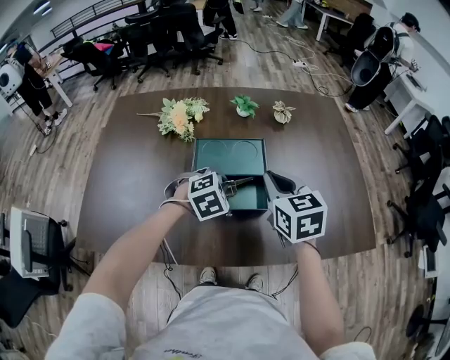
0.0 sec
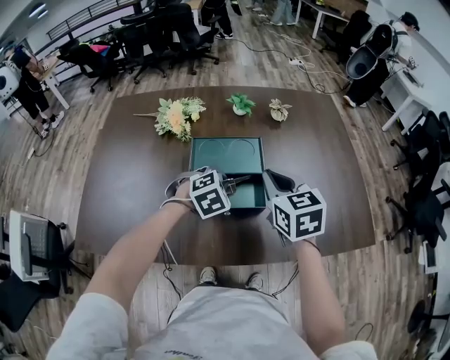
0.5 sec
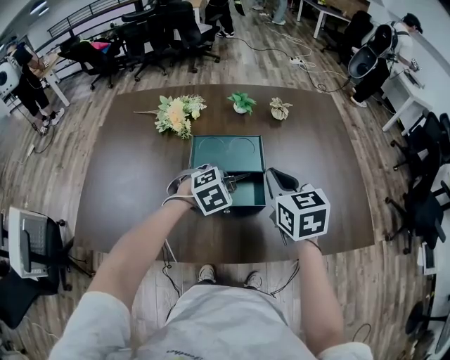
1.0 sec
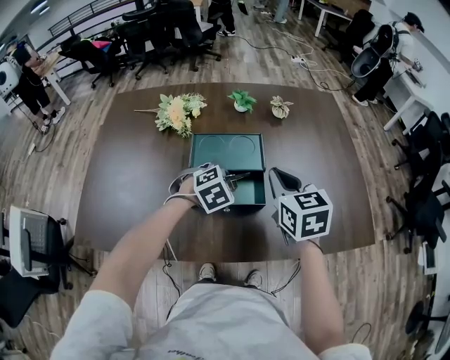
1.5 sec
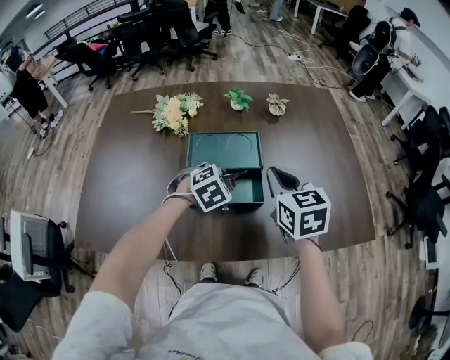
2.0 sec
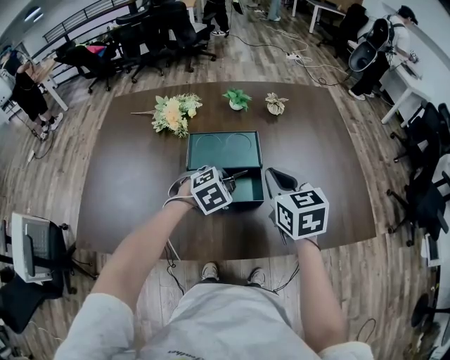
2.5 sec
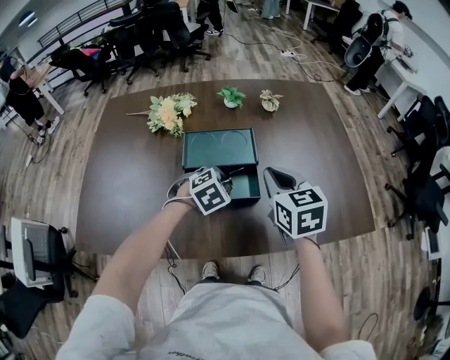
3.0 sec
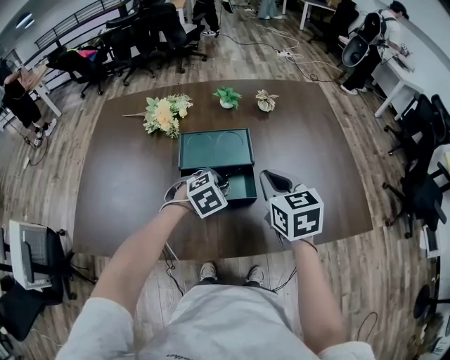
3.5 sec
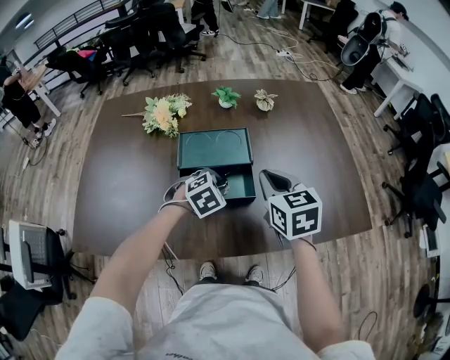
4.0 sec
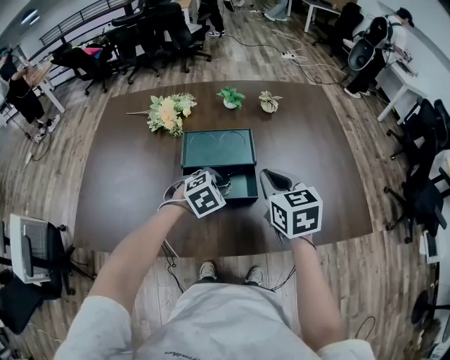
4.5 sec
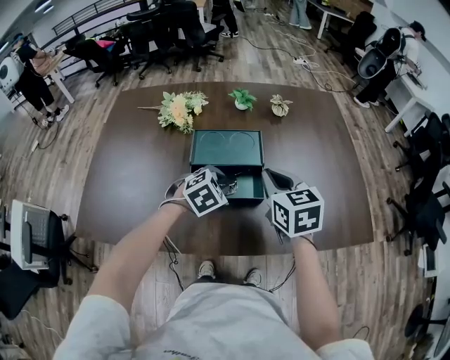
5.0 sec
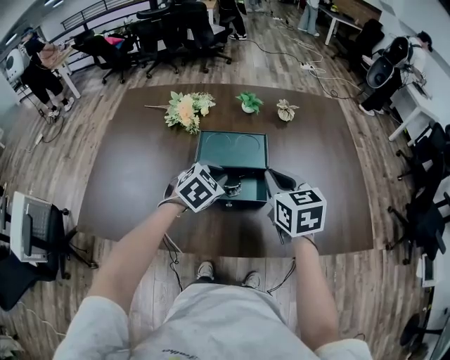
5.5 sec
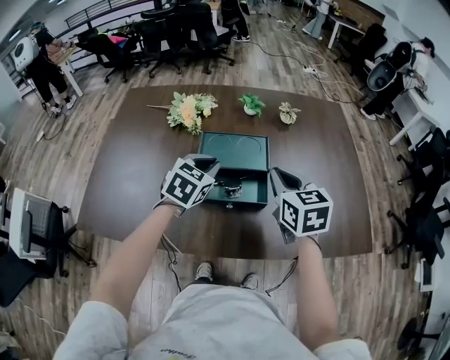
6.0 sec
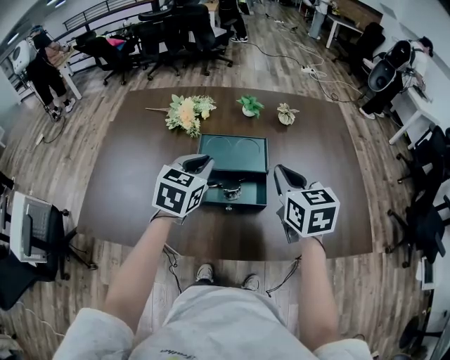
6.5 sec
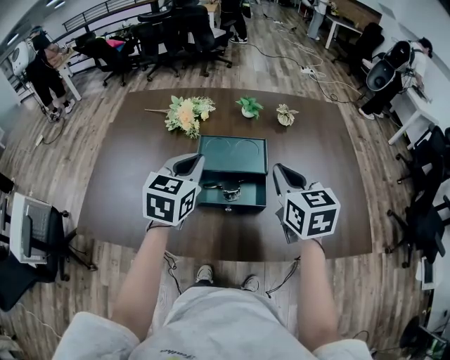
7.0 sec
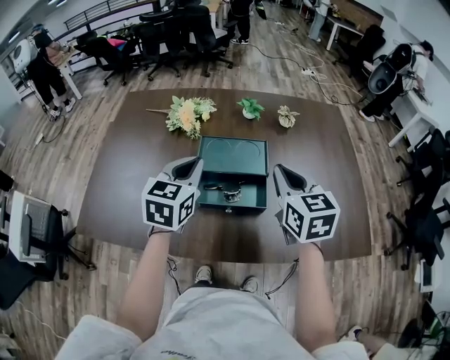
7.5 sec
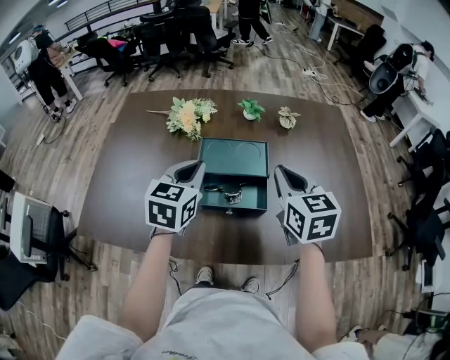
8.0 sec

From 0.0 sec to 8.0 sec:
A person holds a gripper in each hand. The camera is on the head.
From 0.0 sec to 2.0 sec: The grippers make only small movements.
From 2.0 sec to 4.0 sec: The left gripper opens up.
From 4.0 sec to 6.0 sec: The left gripper shifts roughly 15 cm upward and to the left, and turns by approximately 40 degrees.
From 6.0 sec to 8.0 sec: The left gripper travels upward by some 5 cm, and turns by approximately 20 degrees.

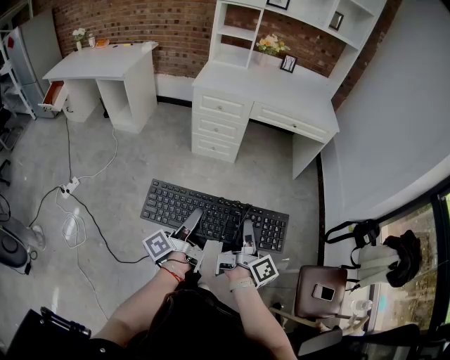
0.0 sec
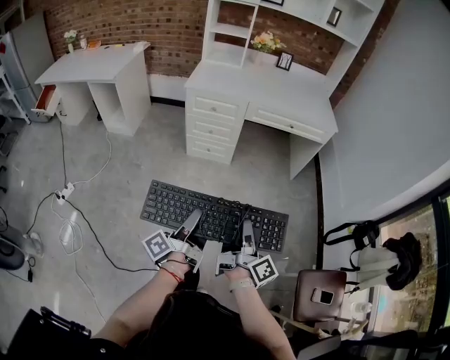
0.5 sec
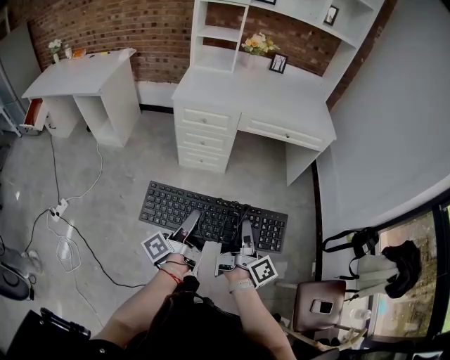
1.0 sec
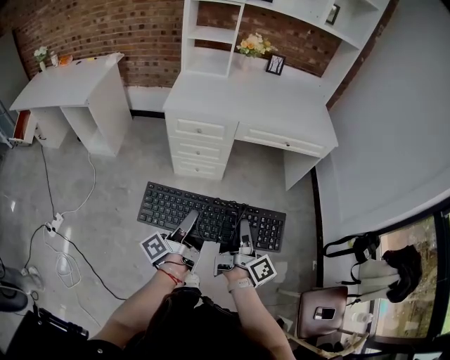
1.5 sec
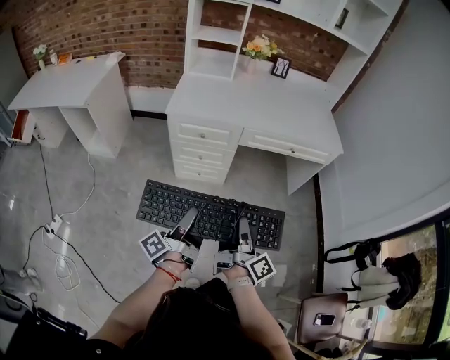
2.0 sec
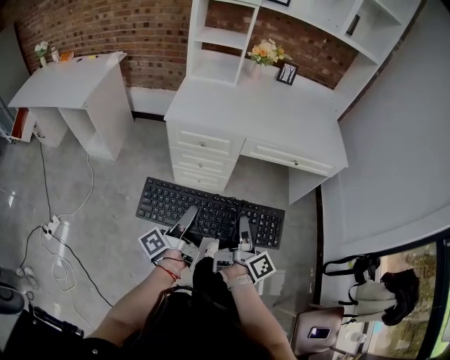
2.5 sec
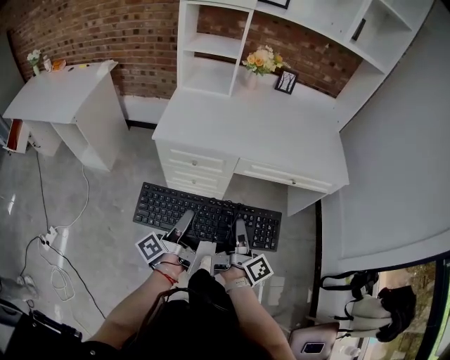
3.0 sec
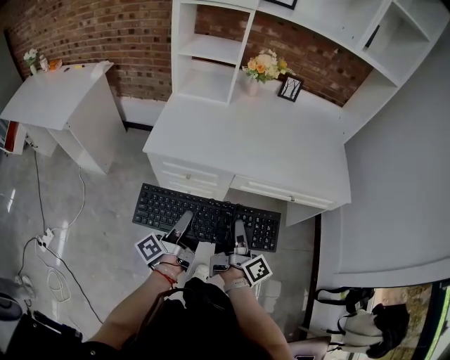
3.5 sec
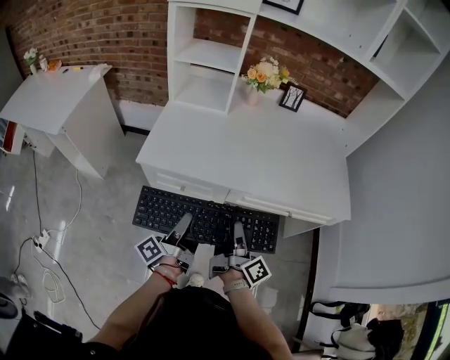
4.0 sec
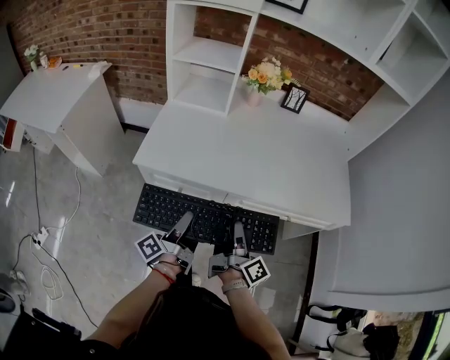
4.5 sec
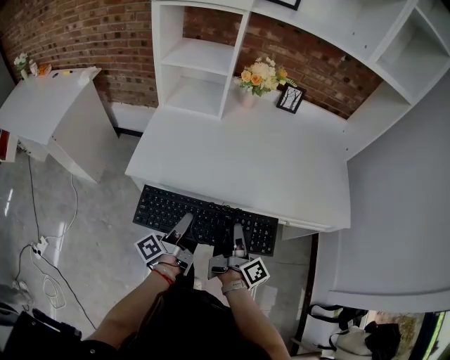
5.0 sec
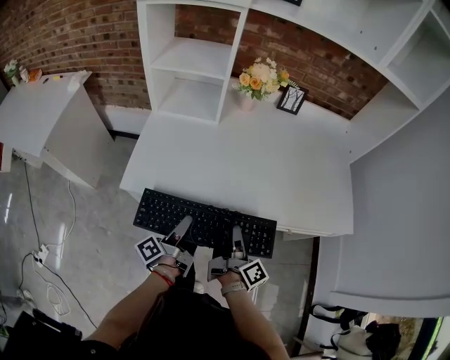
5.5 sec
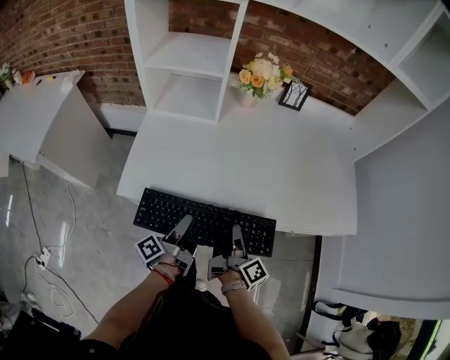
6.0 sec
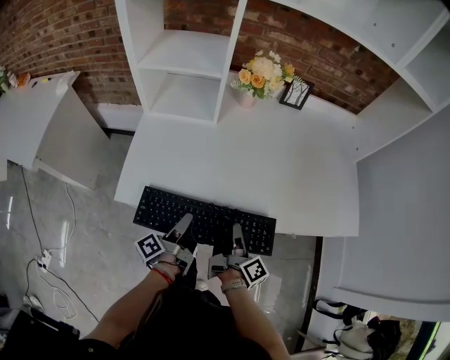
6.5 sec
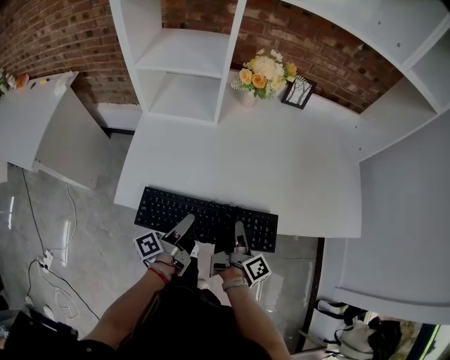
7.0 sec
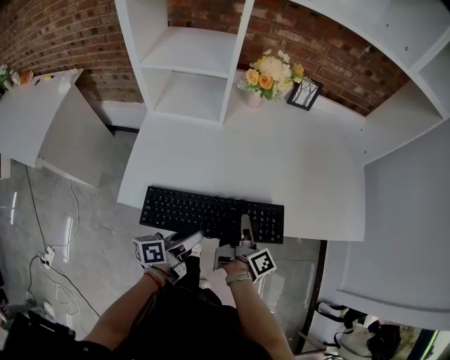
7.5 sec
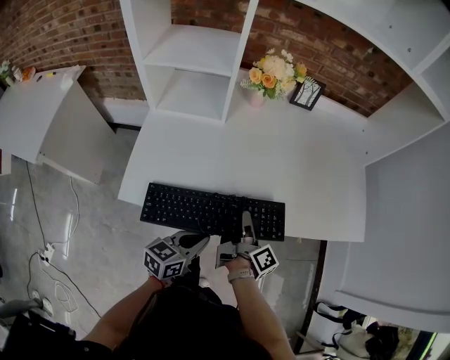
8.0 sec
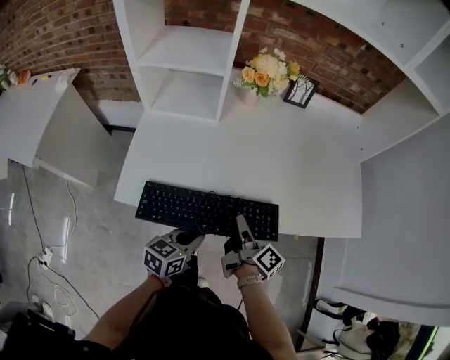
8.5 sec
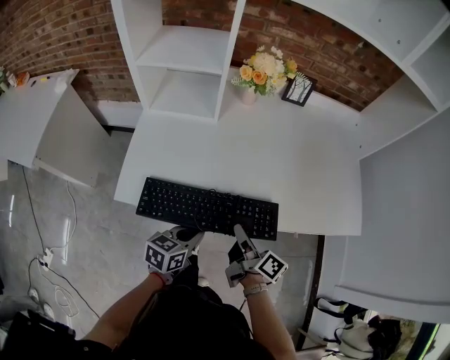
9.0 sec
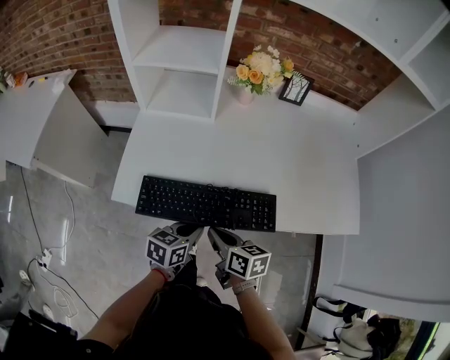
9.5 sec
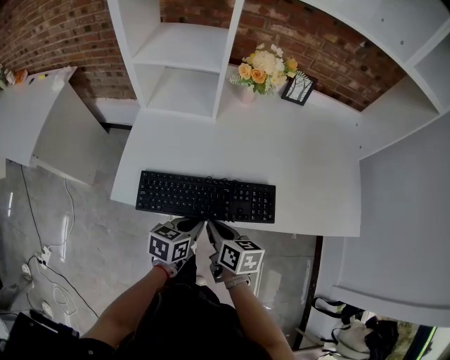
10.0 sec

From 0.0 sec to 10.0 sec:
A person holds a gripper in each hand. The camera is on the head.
From 0.0 sec to 2.0 sec: Both grippers travel together forward, roughly 30 cm.
From 2.0 sec to 4.0 sec: The two grippers go roughly 30 cm forward.
From 4.0 sec to 6.0 sec: The two grippers go roughly 15 cm forward and downward.
From 6.0 sec to 8.0 sec: The left gripper moves to the right, about 5 cm, and twists approximately 60 degrees clockwise, seen from behind. The right gripper is displaced forward by about 5 cm.
From 8.0 sec to 10.0 sec: The right gripper goes approximately 10 cm to the left and backward, rotates approximately 70 degrees, and opens, then closes once more, while the left gripper moves approximately 5 cm.

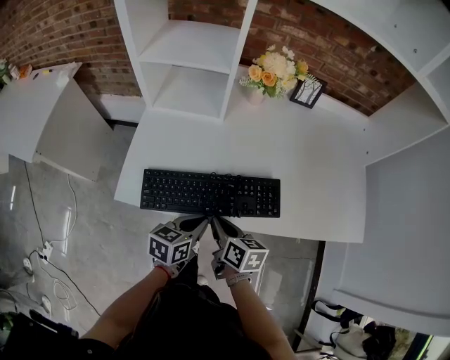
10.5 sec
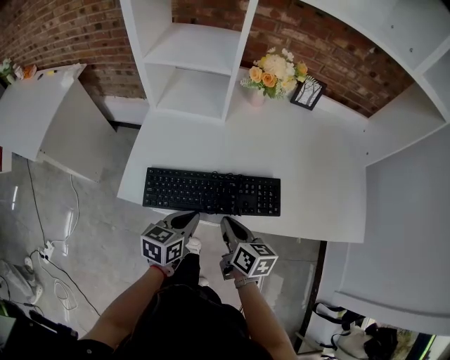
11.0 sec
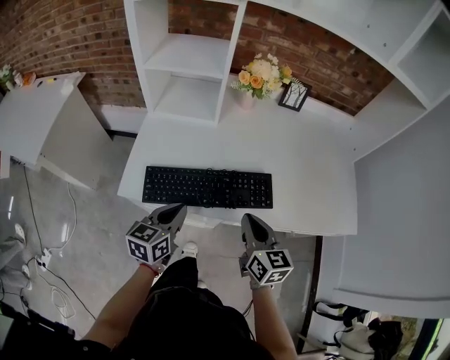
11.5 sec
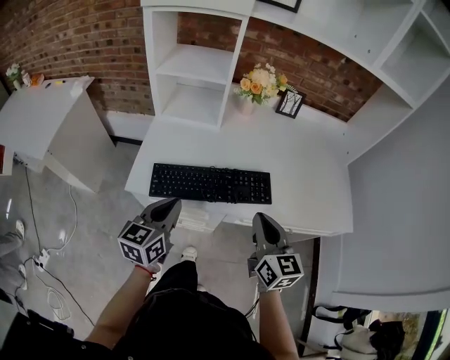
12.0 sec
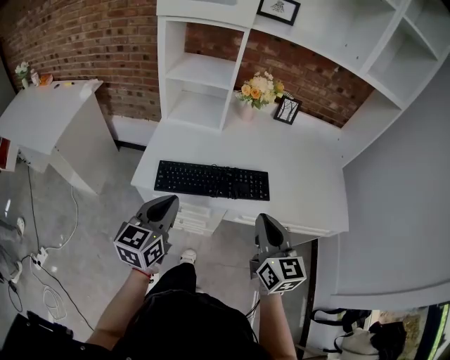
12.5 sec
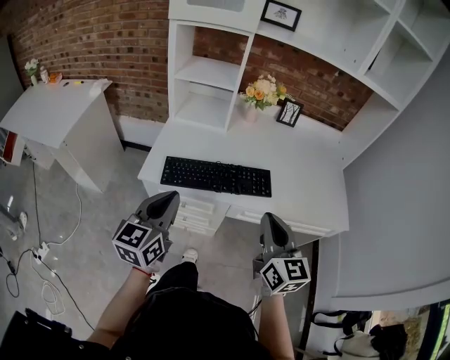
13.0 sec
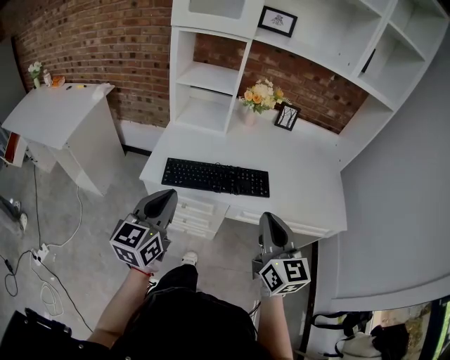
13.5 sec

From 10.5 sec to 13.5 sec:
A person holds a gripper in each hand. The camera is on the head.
From 10.5 sec to 12.0 sec: The left gripper moves upward and to the left, roughly 15 cm, and changes its angle by roughly 30 degrees, while the right gripper heads upward and to the right, covering roughly 20 cm, and rotates about 40 degrees.
From 12.0 sec to 13.5 sec: The grippers both shift backward and upward by approximately 15 cm.

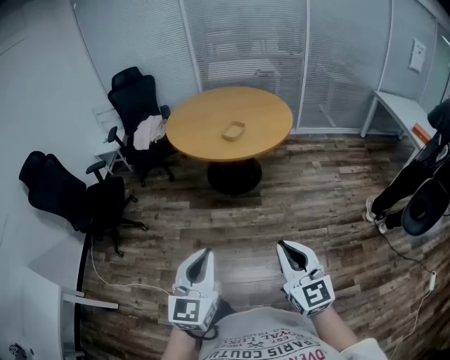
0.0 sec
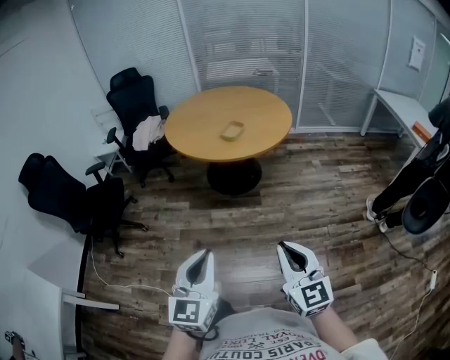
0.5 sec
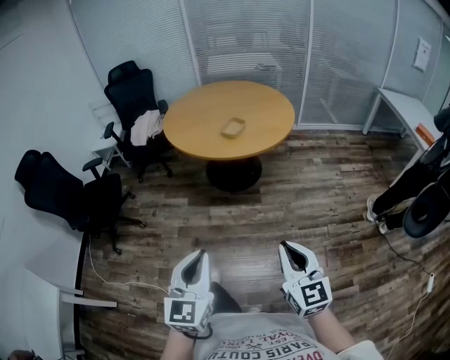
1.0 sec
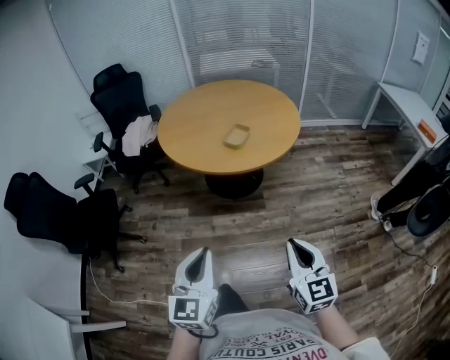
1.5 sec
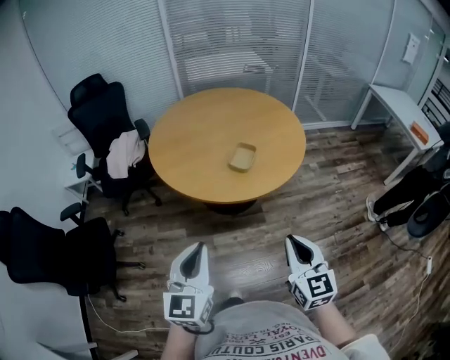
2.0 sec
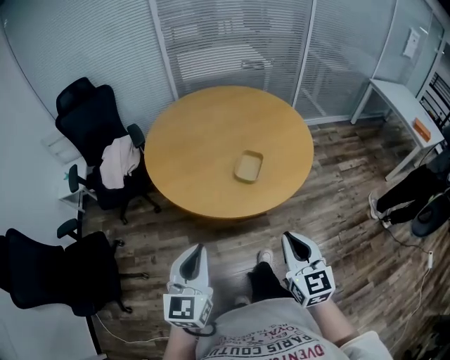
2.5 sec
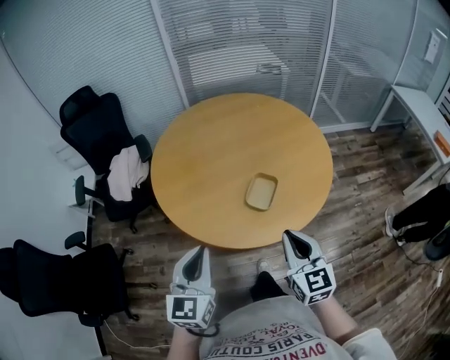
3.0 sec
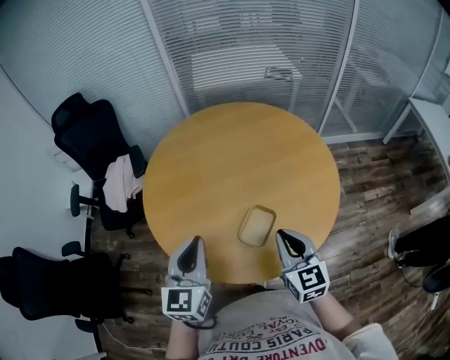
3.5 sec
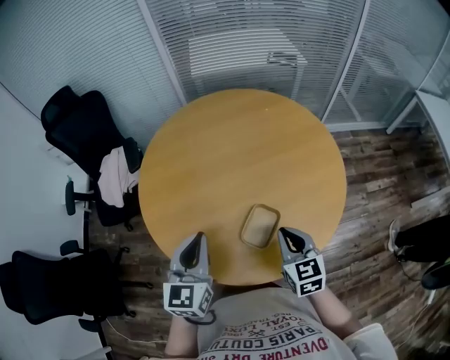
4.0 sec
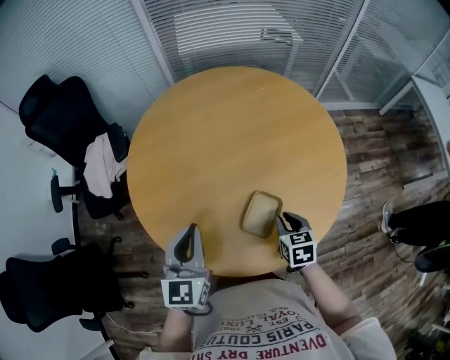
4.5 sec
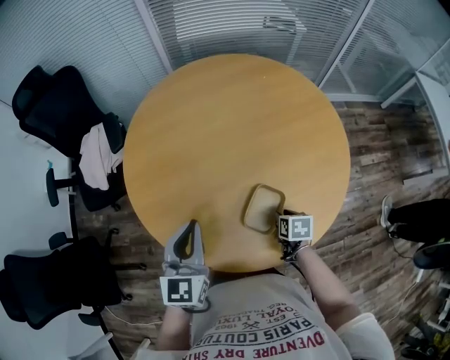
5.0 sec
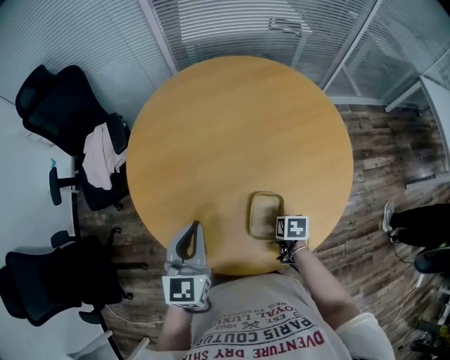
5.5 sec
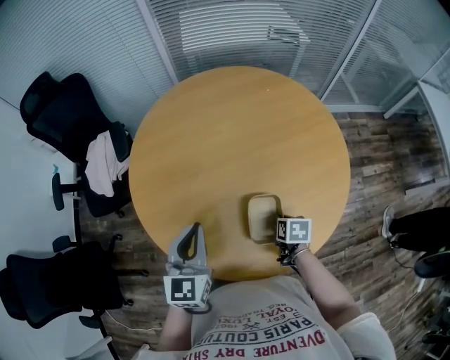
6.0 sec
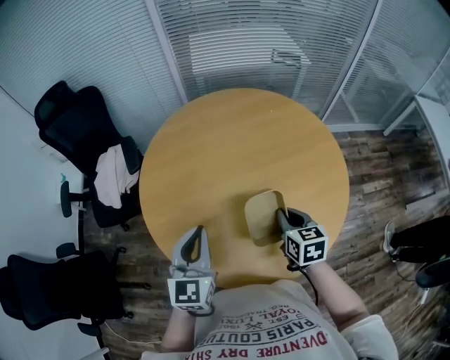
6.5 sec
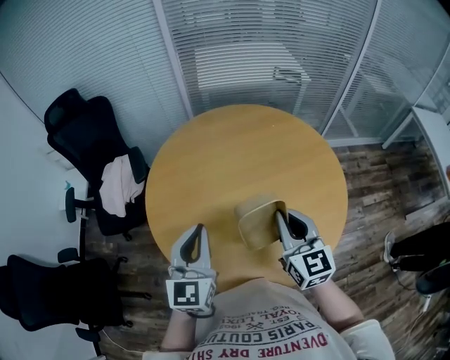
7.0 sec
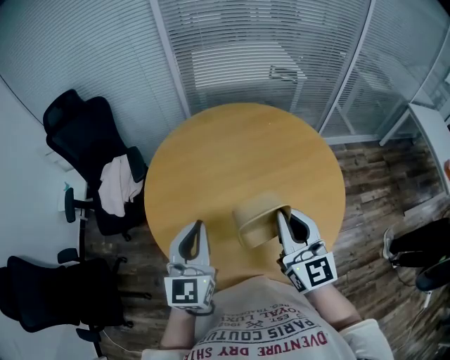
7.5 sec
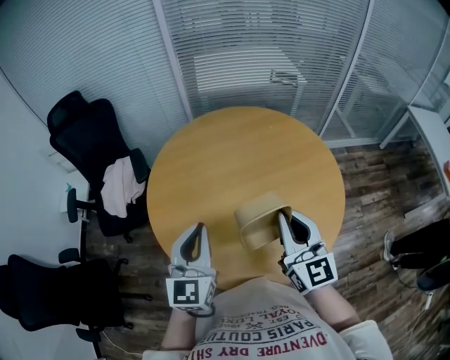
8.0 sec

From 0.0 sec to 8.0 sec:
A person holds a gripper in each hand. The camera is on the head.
From 0.0 sec to 2.0 sec: The left gripper moves forward and to the left, roughly 40 cm, while the right gripper travels forward by some 35 cm.
From 2.0 sec to 4.0 sec: Both grippers are carried forward, about 50 cm.
From 4.0 sec to 6.0 sec: The right gripper travels downward by some 20 cm, tips its fingers downward by about 40 degrees, and opens and closes again. The left gripper is displaced forward by roughly 5 cm.
From 6.0 sec to 8.0 sec: The right gripper travels upward by roughly 35 cm, and points its fingers roughly 70 degrees further upward. The left gripper goes roughly 10 cm upward.
